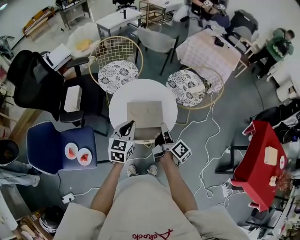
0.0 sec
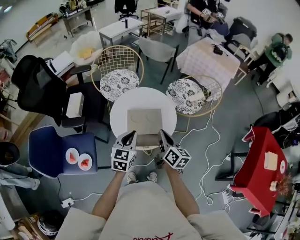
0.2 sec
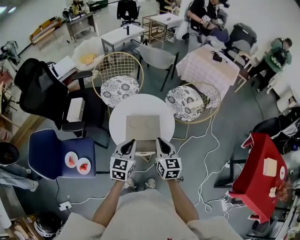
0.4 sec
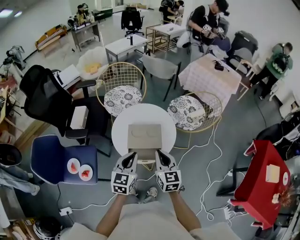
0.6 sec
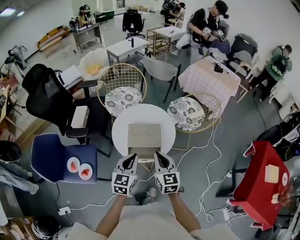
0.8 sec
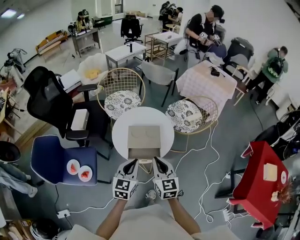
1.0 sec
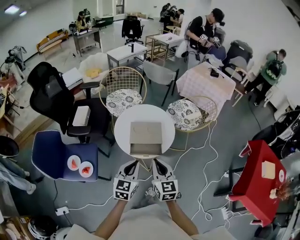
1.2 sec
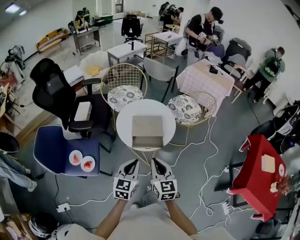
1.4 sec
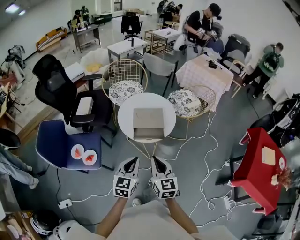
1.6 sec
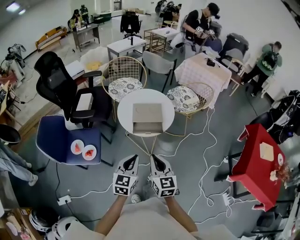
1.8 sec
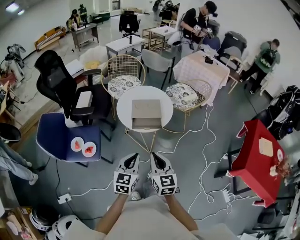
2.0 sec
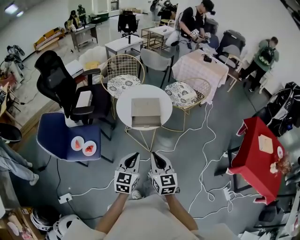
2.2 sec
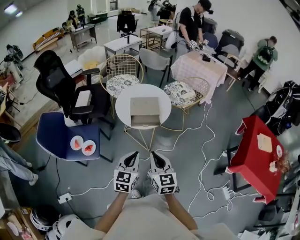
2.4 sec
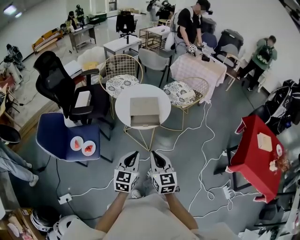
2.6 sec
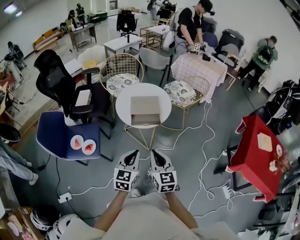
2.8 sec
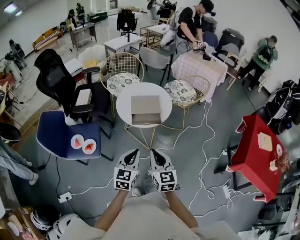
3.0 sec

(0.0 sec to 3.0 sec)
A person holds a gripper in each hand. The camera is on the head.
0.0 sec - 1.6 sec: Both grippers move backward, about 25 cm. The right gripper twists some 70 degrees counterclockwise, seen from behind.
1.6 sec - 3.0 sec: Both grippers travel together backward, about 10 cm.

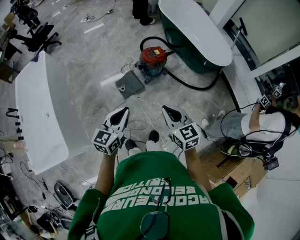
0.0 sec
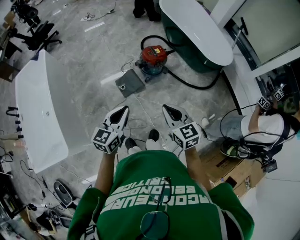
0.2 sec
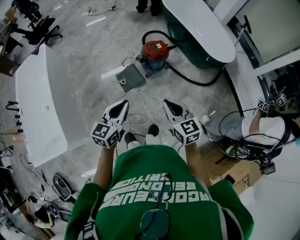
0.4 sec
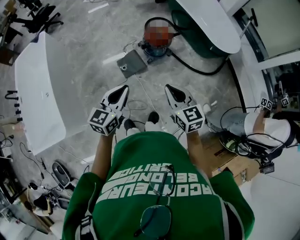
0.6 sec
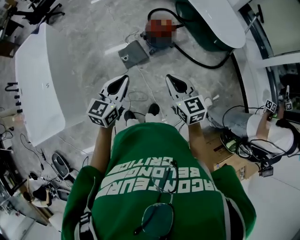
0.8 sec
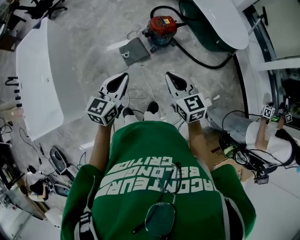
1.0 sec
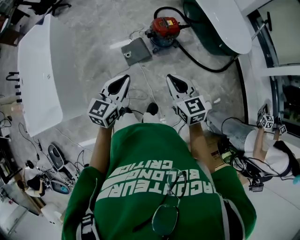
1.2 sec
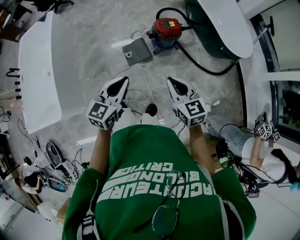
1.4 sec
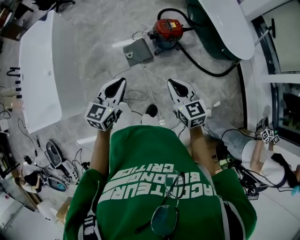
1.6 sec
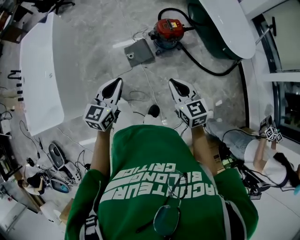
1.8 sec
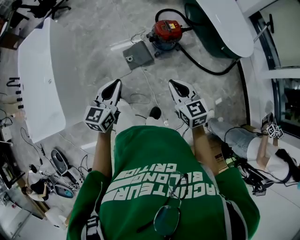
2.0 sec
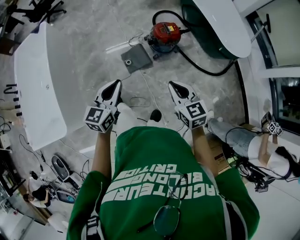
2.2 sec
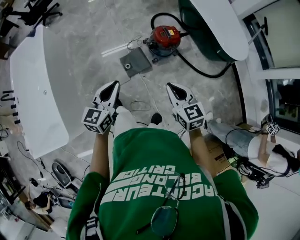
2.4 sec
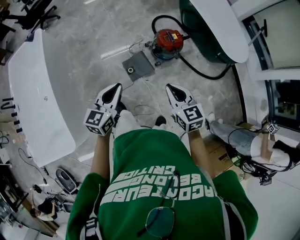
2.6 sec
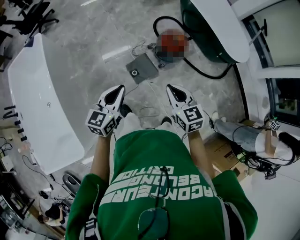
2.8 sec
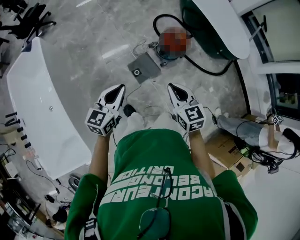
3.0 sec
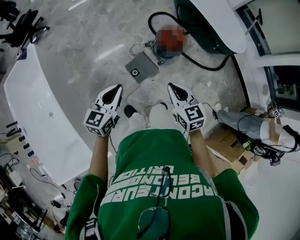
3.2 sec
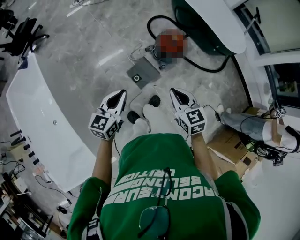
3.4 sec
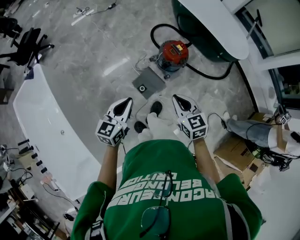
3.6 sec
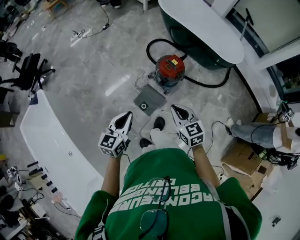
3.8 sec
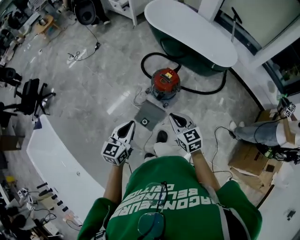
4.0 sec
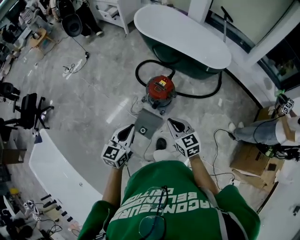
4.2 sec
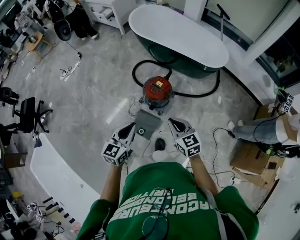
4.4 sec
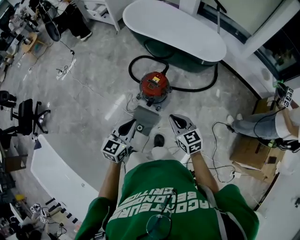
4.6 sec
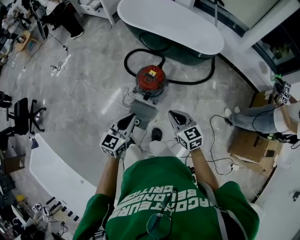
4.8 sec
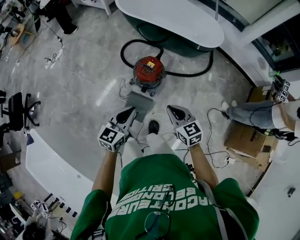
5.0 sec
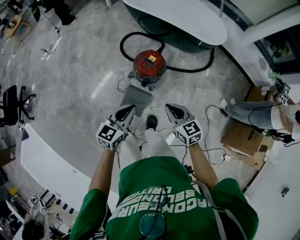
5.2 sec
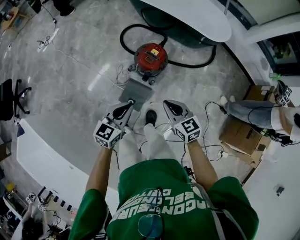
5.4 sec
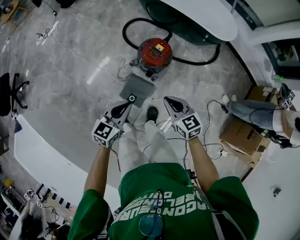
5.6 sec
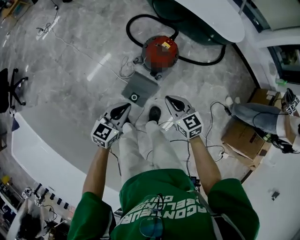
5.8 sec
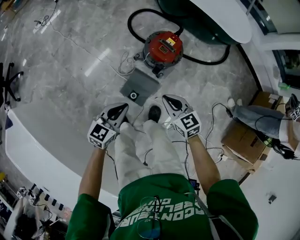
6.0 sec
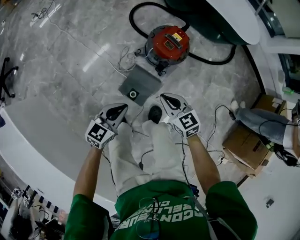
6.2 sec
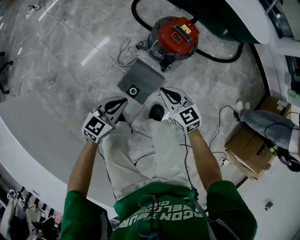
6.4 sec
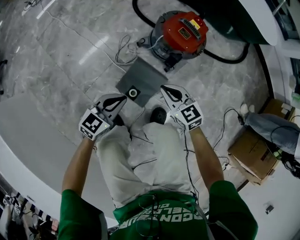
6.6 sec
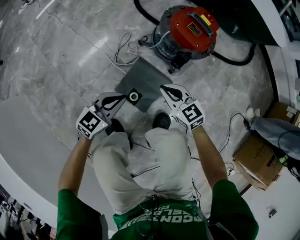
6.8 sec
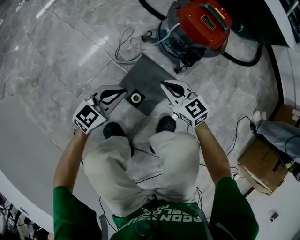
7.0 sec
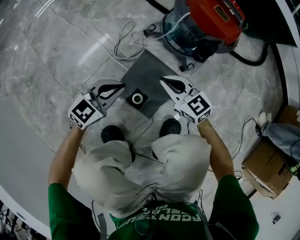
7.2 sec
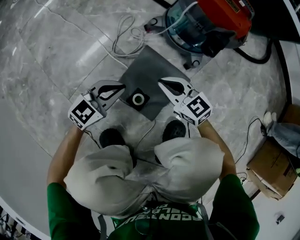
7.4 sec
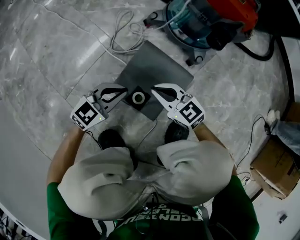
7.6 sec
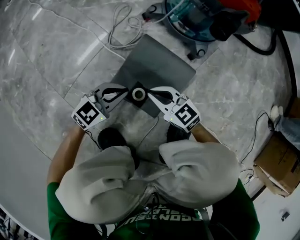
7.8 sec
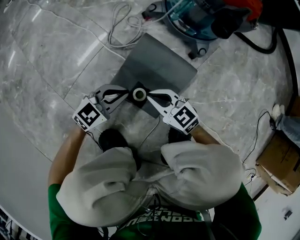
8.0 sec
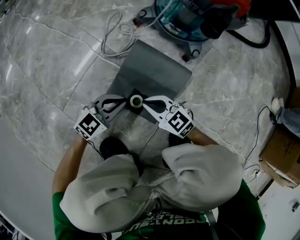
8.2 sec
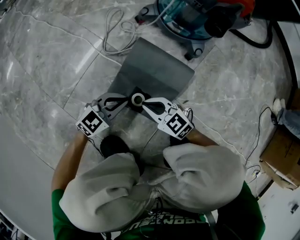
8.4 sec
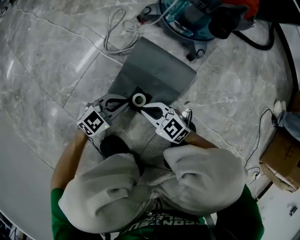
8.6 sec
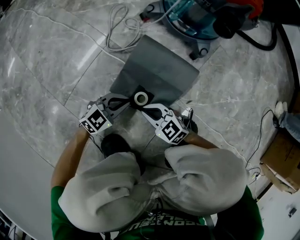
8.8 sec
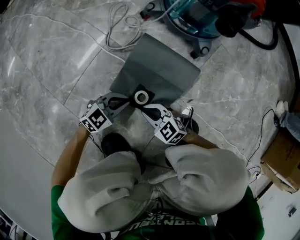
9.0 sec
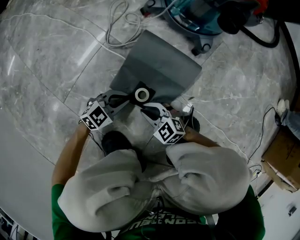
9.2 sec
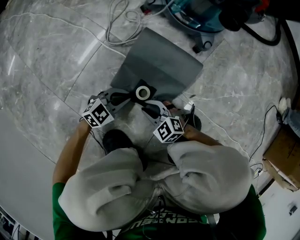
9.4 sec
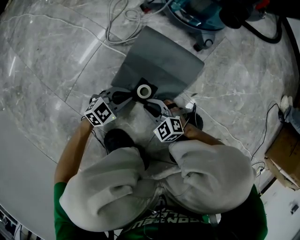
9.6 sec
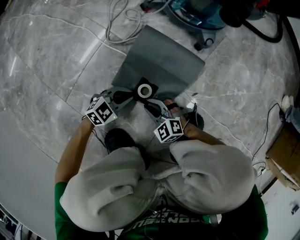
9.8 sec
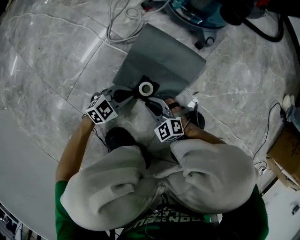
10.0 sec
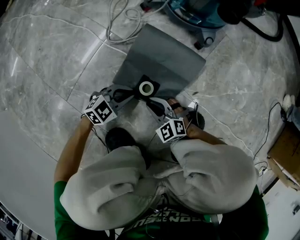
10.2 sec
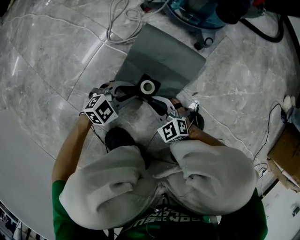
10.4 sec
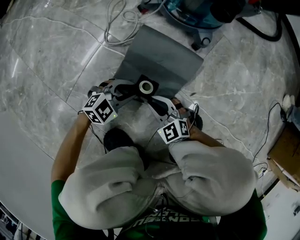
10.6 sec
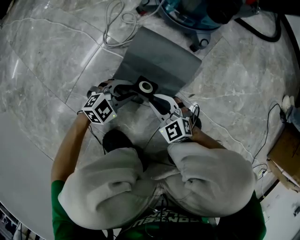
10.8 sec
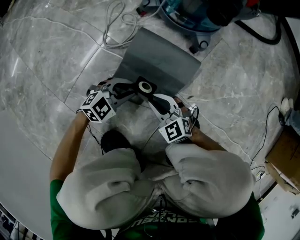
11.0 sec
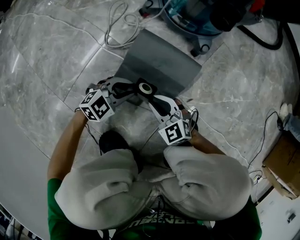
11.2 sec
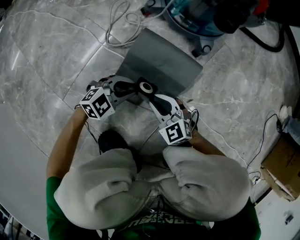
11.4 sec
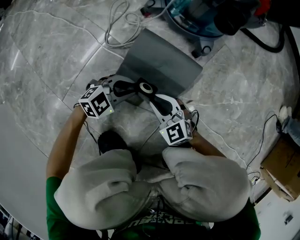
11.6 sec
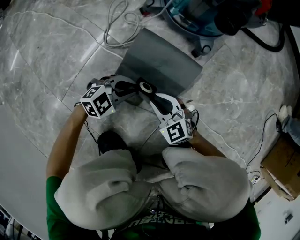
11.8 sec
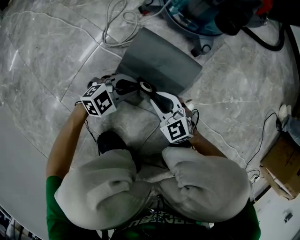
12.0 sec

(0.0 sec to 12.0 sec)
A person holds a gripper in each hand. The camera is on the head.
0.0 sec - 1.6 sec: The right gripper is displaced forward by about 5 cm.
1.6 sec - 3.0 sec: Both grippers travel together to the left and forward, approximately 30 cm.
3.0 sec - 4.4 sec: The grippers both shift forward and to the right by about 25 cm. The left gripper swivels approximately 30 degrees; the right gripper rotates roughly 20 degrees.
4.4 sec - 6.0 sec: The two grippers go some 30 cm downward and to the left.
6.0 sec - 7.6 sec: The grippers both shift downward by roughly 60 cm. The left gripper rotates roughly 20 degrees.
7.6 sec - 9.0 sec: Both grippers travel together downward, about 15 cm.
10.4 sec - 12.0 sec: The left gripper moves about 5 cm, while the right gripper ends up some 10 cm from where it was.

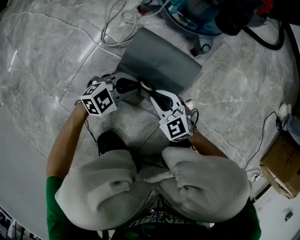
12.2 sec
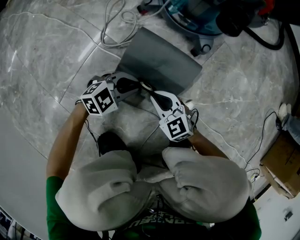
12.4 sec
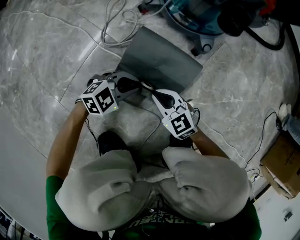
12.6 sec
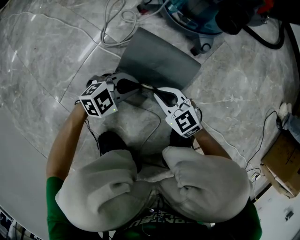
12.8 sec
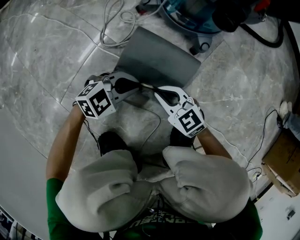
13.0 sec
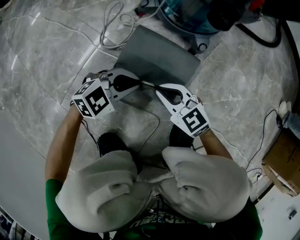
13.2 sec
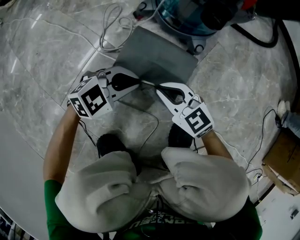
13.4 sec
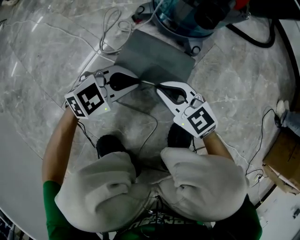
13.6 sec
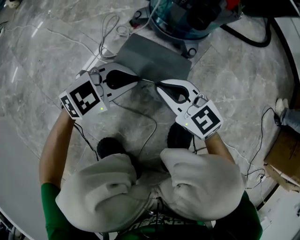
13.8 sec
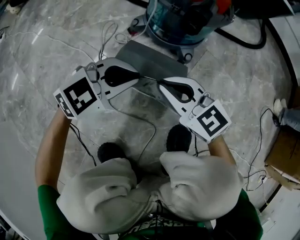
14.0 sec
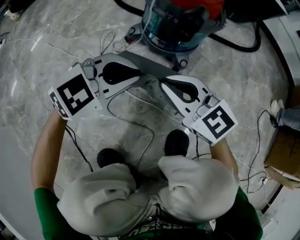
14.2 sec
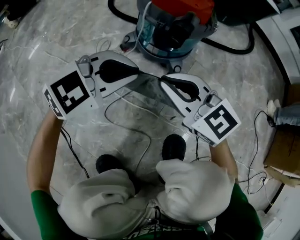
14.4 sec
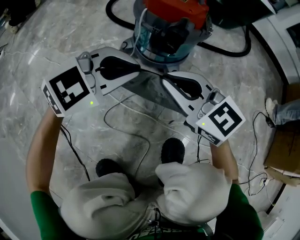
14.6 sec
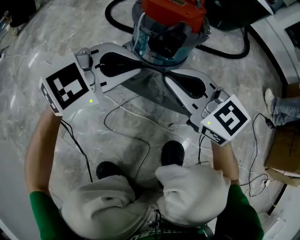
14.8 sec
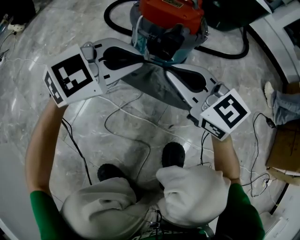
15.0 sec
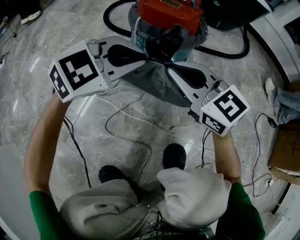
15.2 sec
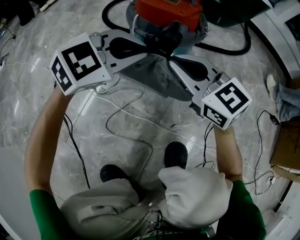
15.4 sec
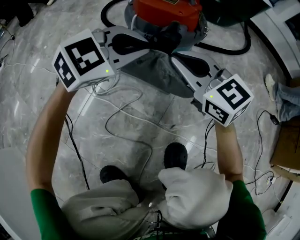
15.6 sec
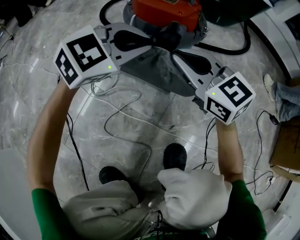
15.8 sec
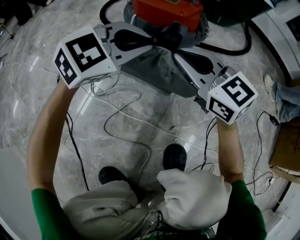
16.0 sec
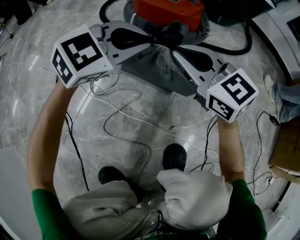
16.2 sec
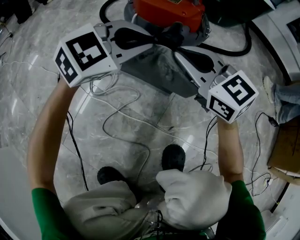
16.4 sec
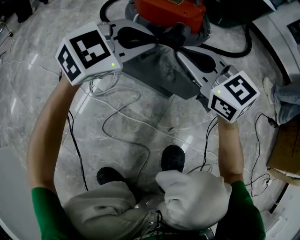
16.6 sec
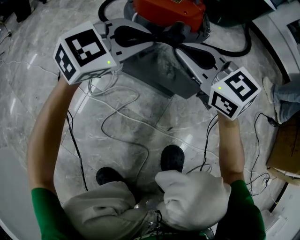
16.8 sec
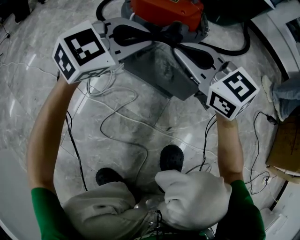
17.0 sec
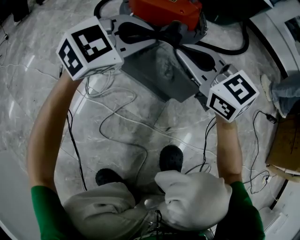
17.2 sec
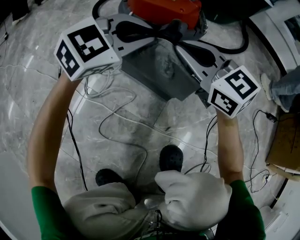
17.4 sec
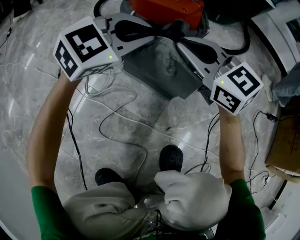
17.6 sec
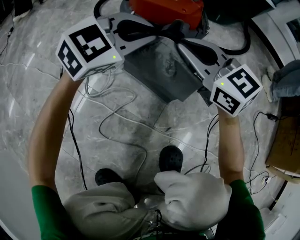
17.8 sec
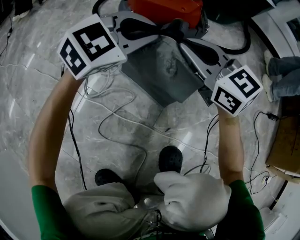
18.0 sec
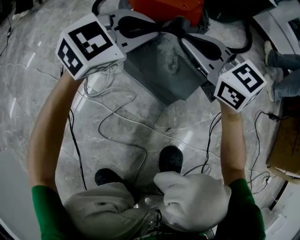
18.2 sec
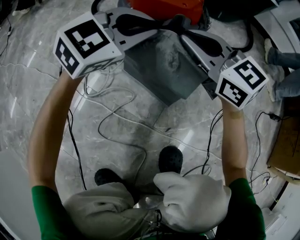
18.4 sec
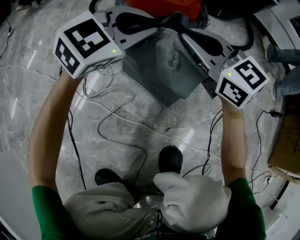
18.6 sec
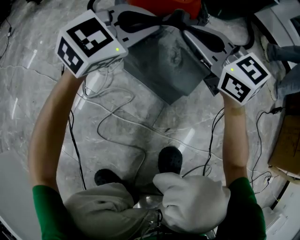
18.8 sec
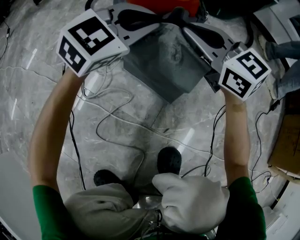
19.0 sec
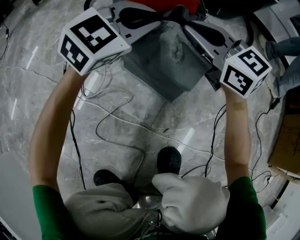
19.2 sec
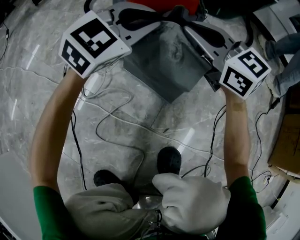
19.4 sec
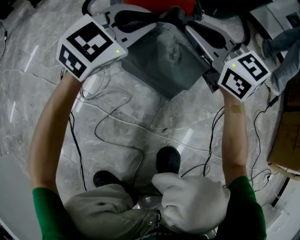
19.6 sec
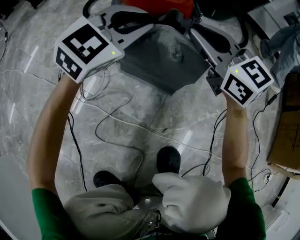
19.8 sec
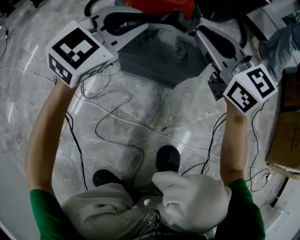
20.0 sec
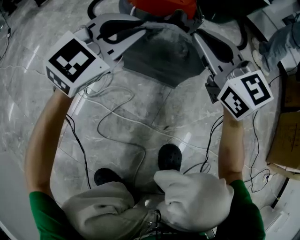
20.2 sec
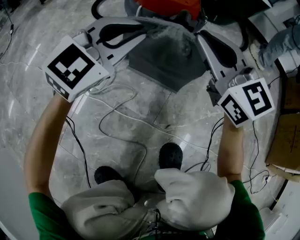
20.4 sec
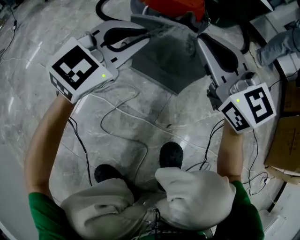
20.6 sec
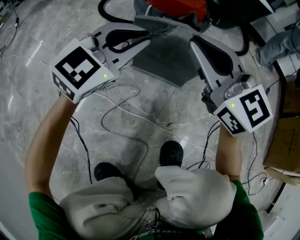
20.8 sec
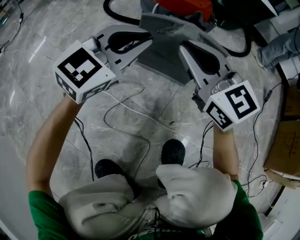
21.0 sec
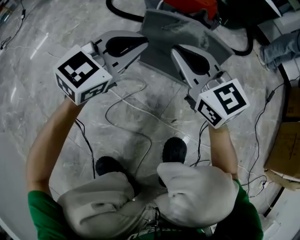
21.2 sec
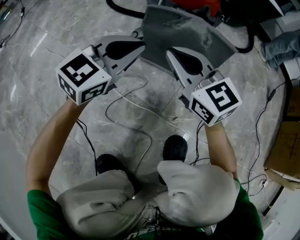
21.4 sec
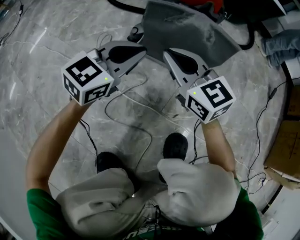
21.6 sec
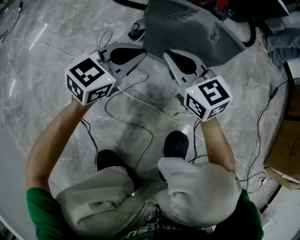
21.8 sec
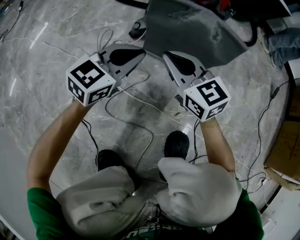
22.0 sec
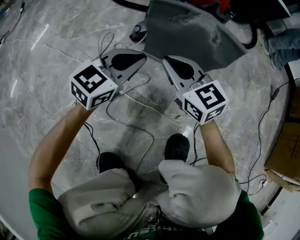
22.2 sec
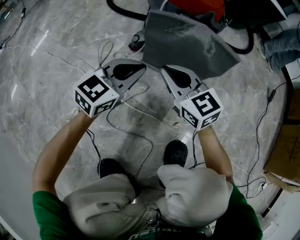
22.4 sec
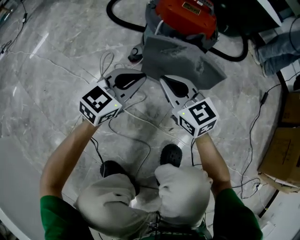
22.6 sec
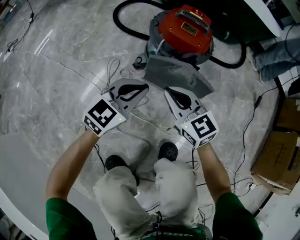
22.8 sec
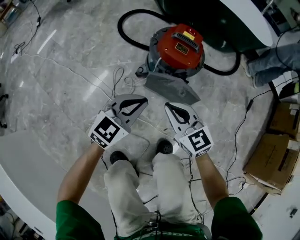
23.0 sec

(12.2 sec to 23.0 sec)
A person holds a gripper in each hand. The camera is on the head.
12.2 sec - 13.8 sec: The grippers both shift upward by approximately 15 cm.
13.8 sec - 15.2 sec: Both grippers travel together upward, some 15 cm.
15.2 sec - 16.8 sec: The two grippers go some 5 cm forward.
16.8 sec - 18.4 sec: The right gripper changes place by about 5 cm.
18.4 sec - 20.0 sec: The right gripper ends up some 5 cm from where it was.
20.0 sec - 21.4 sec: The right gripper goes approximately 15 cm to the left, backward and downward. The left gripper is displaced backward, to the left and downward by roughly 15 cm.
21.4 sec - 23.0 sec: The grippers both shift upward by about 15 cm.
